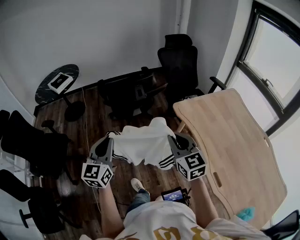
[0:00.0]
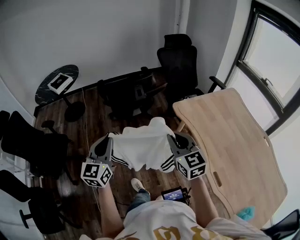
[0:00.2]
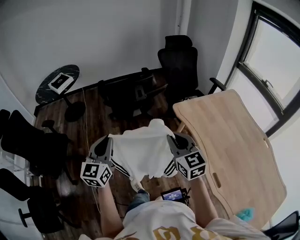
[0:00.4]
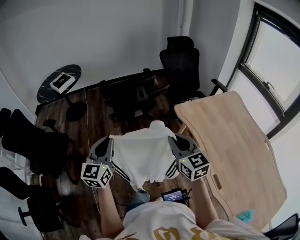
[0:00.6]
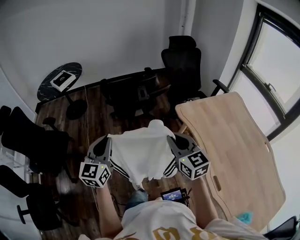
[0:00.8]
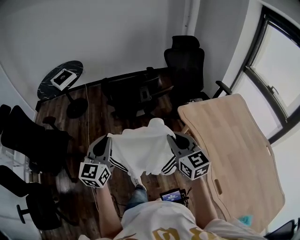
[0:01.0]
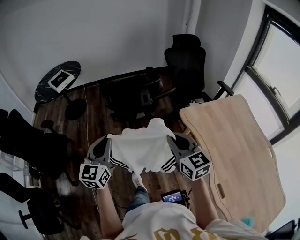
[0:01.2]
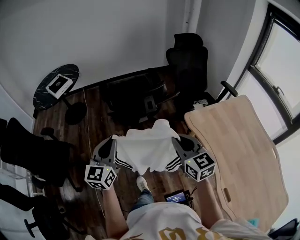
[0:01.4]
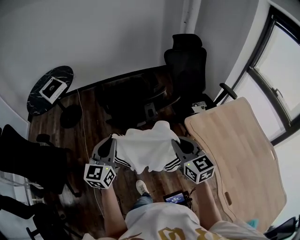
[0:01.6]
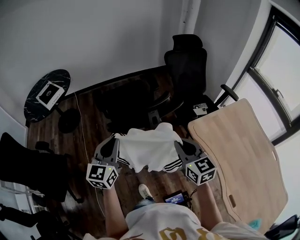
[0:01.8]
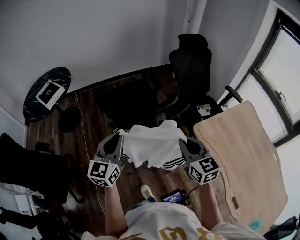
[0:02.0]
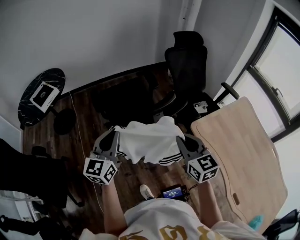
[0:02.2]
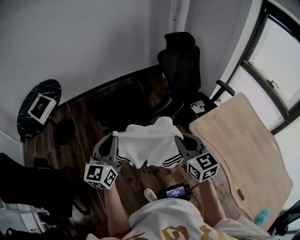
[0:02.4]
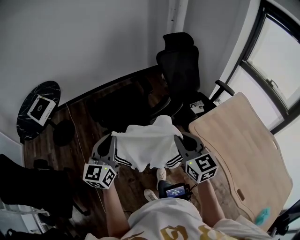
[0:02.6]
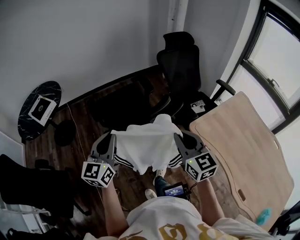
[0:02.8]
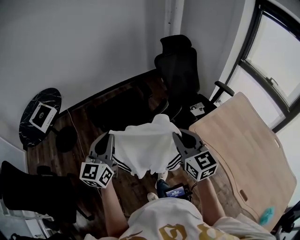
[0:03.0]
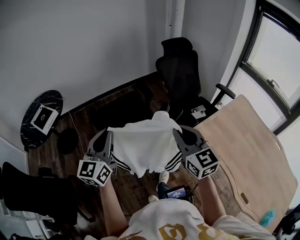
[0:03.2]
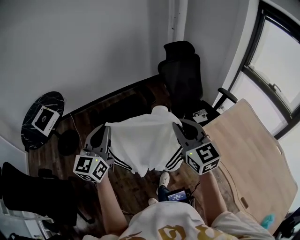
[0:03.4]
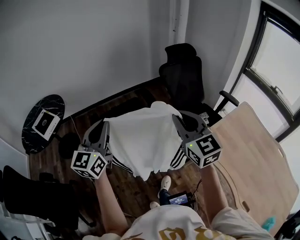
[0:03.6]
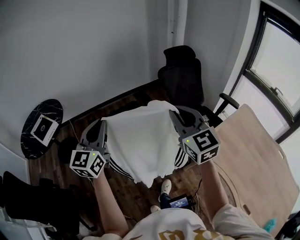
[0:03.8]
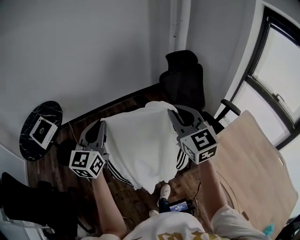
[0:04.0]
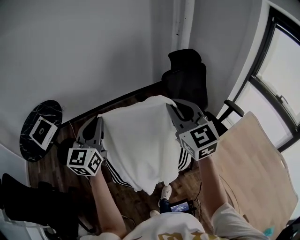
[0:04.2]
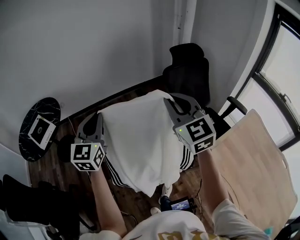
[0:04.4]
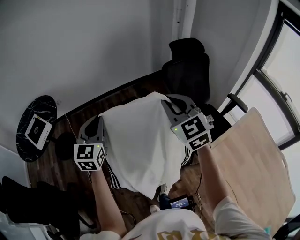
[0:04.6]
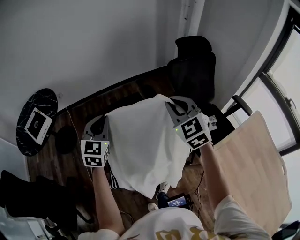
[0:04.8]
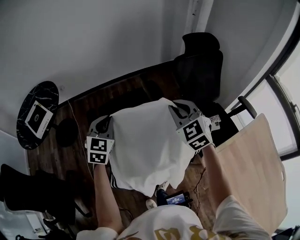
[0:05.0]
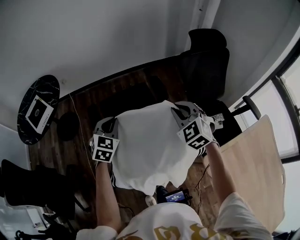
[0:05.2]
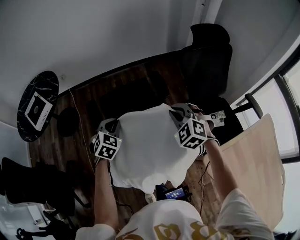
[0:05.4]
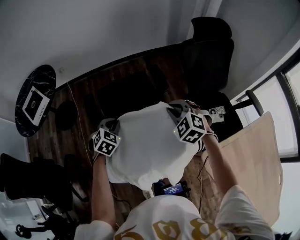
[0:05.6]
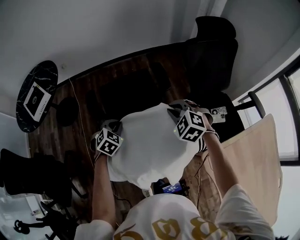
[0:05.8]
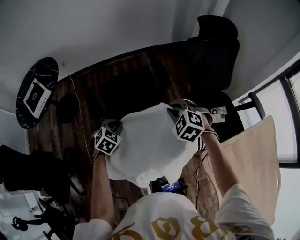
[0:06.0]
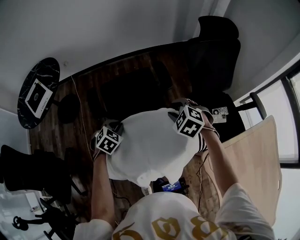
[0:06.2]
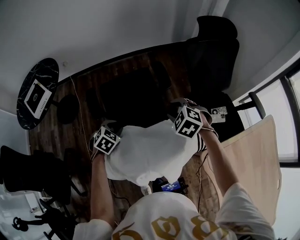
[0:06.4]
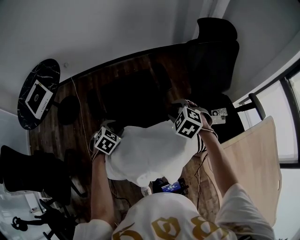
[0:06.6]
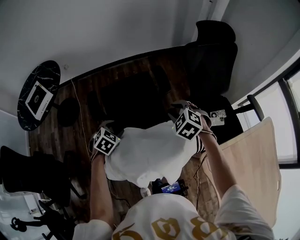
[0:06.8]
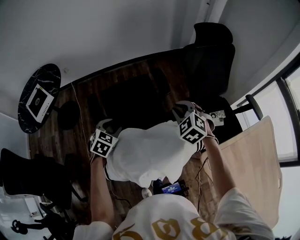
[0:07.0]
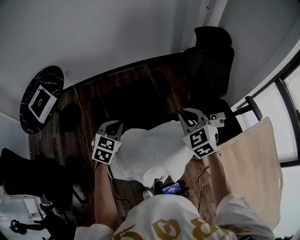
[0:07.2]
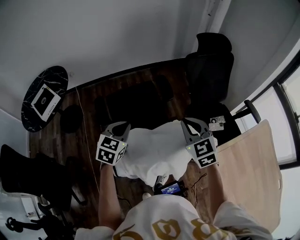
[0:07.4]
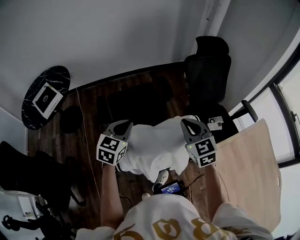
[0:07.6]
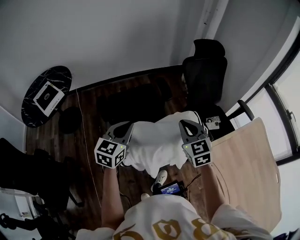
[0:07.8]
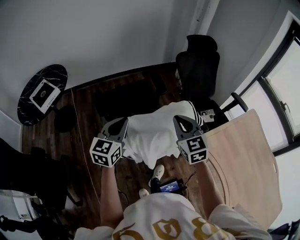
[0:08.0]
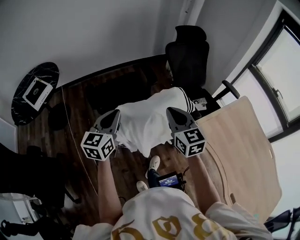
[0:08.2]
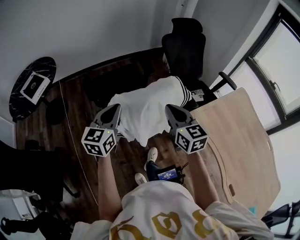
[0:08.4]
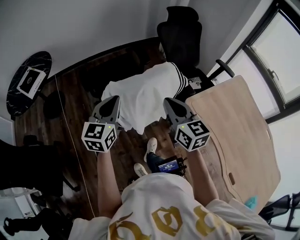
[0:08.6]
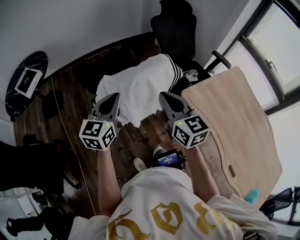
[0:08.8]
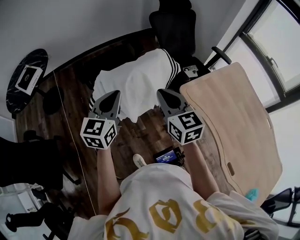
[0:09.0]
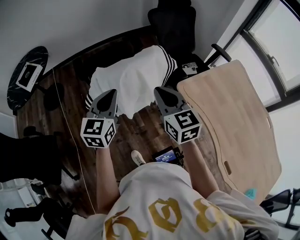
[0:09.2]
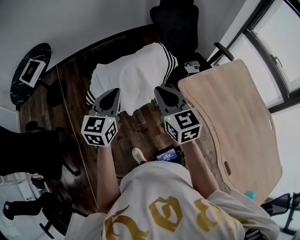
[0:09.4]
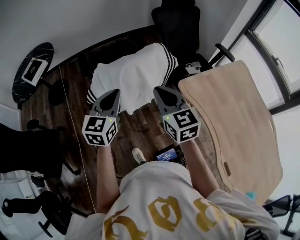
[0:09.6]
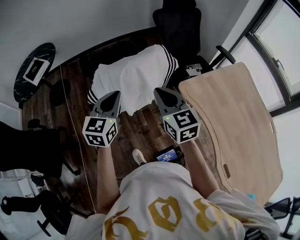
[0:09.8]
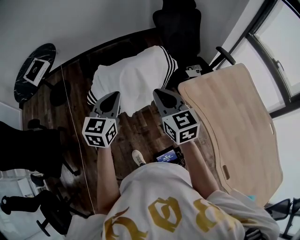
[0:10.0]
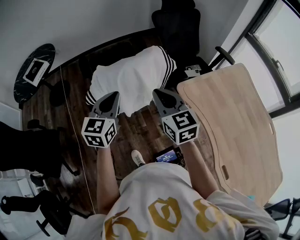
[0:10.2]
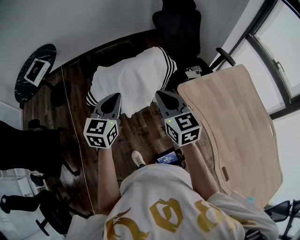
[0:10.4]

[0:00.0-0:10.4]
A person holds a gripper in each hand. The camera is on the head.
0:00.0 to 0:01.4: Both grippers move forward, roughly 15 cm.
0:01.4 to 0:03.0: The two grippers go approximately 20 cm forward.
0:03.0 to 0:04.4: The left gripper moves forward, about 25 cm, while the right gripper shifts approximately 30 cm forward and upward.
0:04.4 to 0:06.0: Both grippers travel together downward, about 30 cm. The right gripper tips its fingers downward by some 50 degrees, while the left gripper tilts its fingers approximately 50 degrees downward.
0:06.0 to 0:07.4: The right gripper is displaced upward and backward by about 15 cm, rotates roughly 40 degrees, and opens, then closes once more; the left gripper shifts some 15 cm upward, rotates about 30 degrees, and opens, then closes again.
0:07.4 to 0:09.0: Both grippers move backward, some 25 cm. The left gripper changes its angle by roughly 20 degrees; the right gripper changes its angle by approximately 30 degrees.
0:09.0 to 0:10.4: The right gripper ends up approximately 5 cm from where it was. The left gripper shifts by roughly 5 cm.

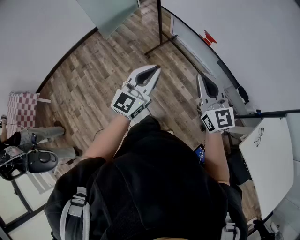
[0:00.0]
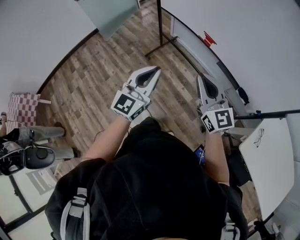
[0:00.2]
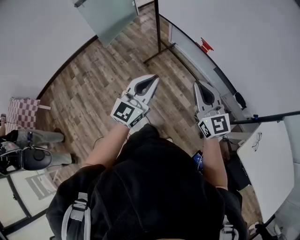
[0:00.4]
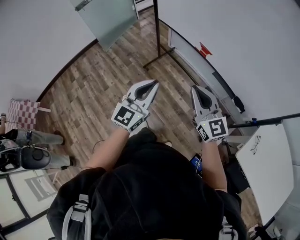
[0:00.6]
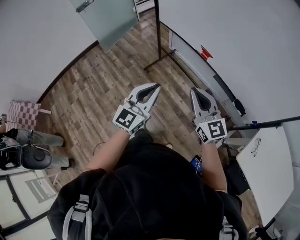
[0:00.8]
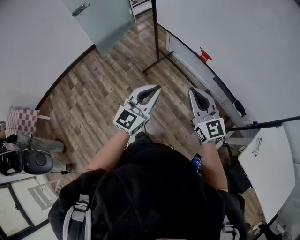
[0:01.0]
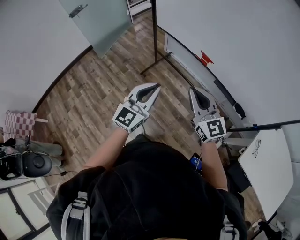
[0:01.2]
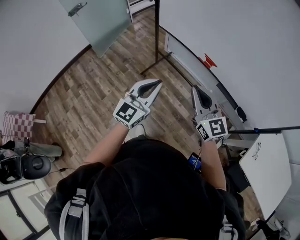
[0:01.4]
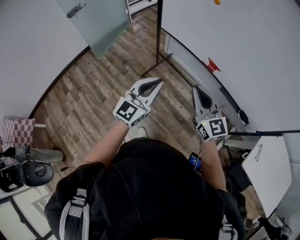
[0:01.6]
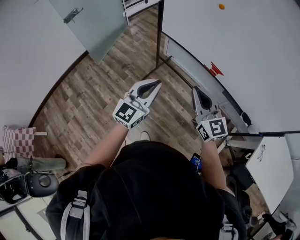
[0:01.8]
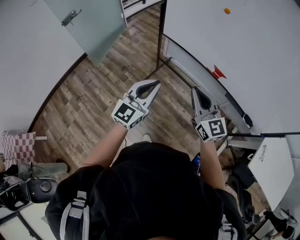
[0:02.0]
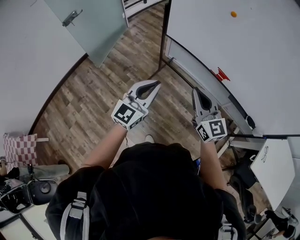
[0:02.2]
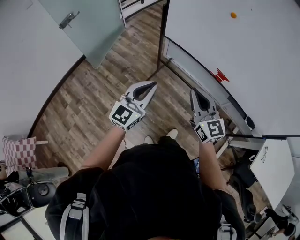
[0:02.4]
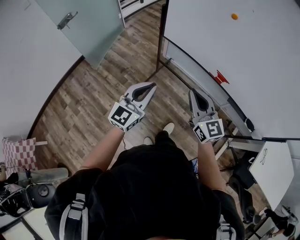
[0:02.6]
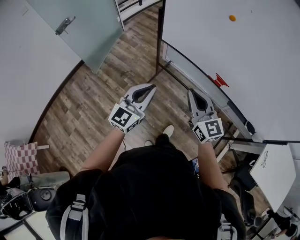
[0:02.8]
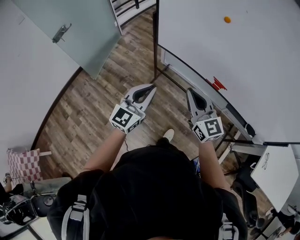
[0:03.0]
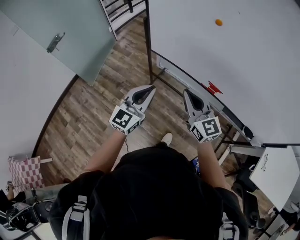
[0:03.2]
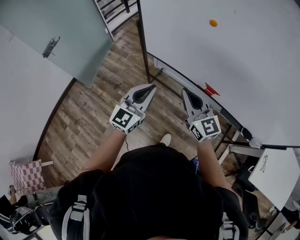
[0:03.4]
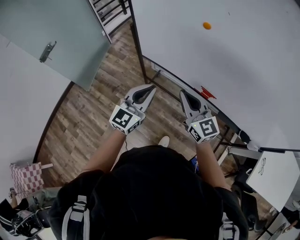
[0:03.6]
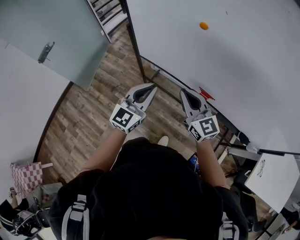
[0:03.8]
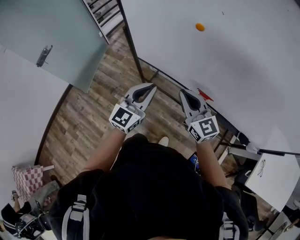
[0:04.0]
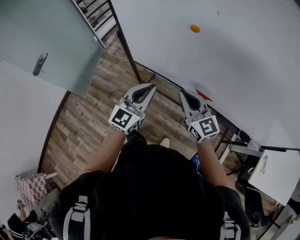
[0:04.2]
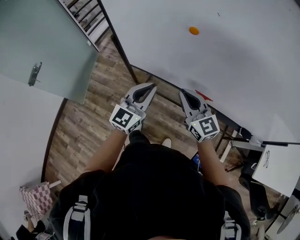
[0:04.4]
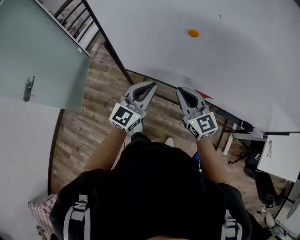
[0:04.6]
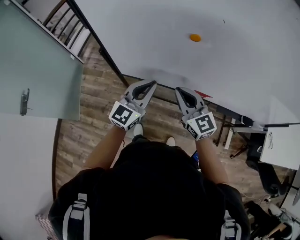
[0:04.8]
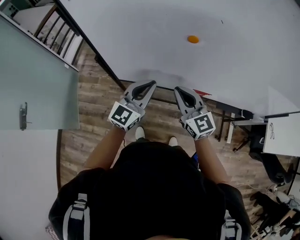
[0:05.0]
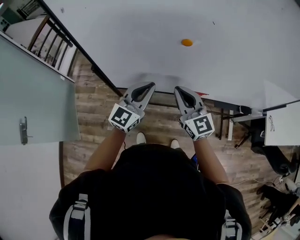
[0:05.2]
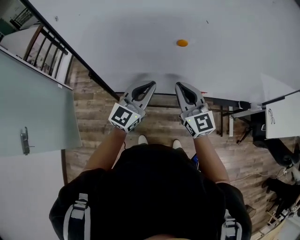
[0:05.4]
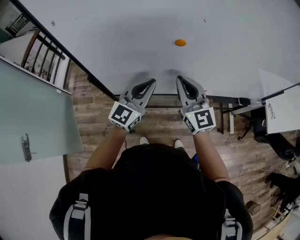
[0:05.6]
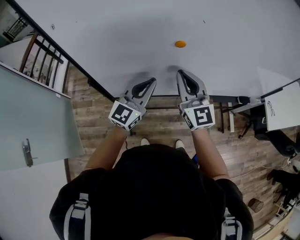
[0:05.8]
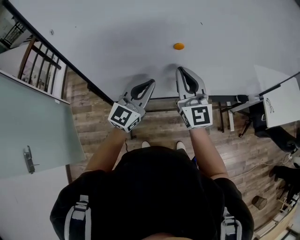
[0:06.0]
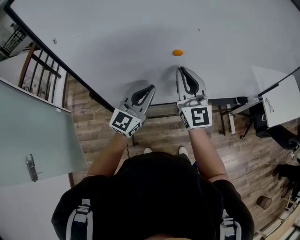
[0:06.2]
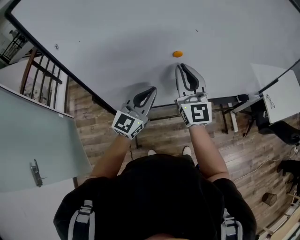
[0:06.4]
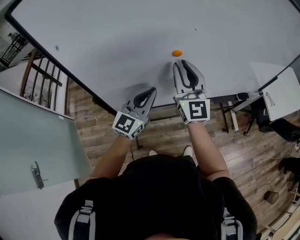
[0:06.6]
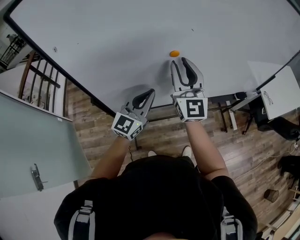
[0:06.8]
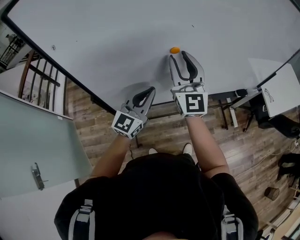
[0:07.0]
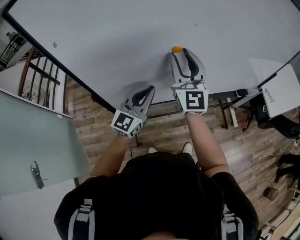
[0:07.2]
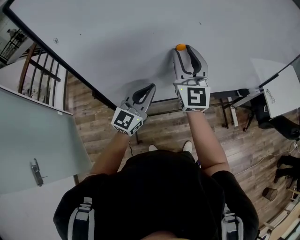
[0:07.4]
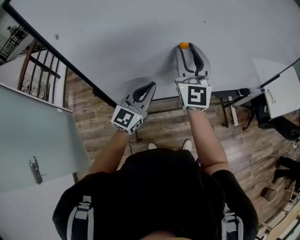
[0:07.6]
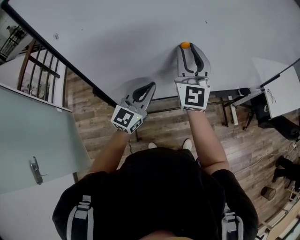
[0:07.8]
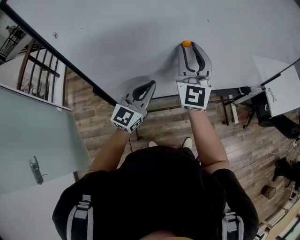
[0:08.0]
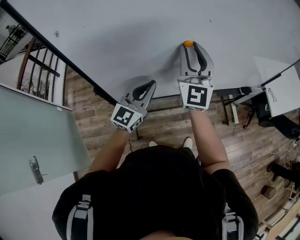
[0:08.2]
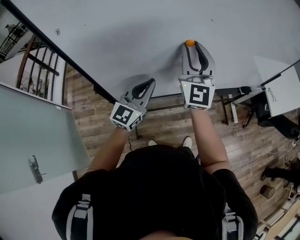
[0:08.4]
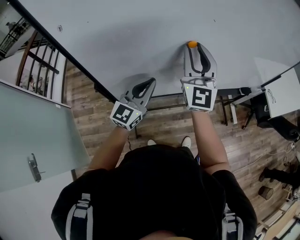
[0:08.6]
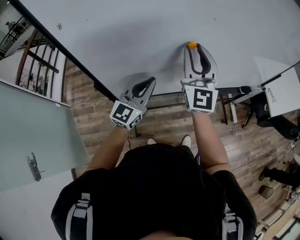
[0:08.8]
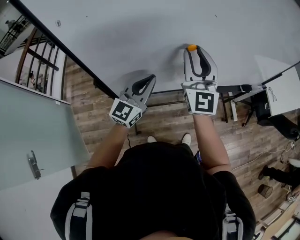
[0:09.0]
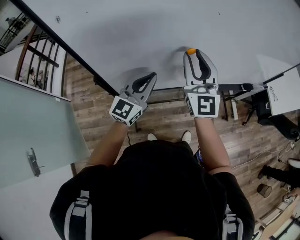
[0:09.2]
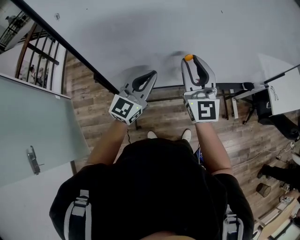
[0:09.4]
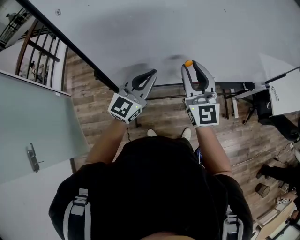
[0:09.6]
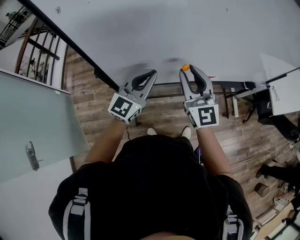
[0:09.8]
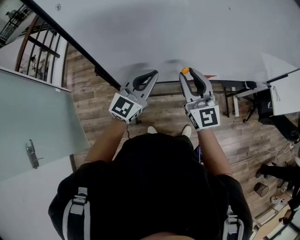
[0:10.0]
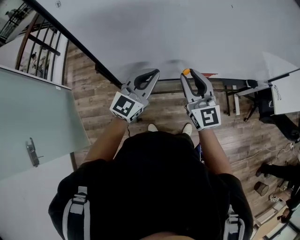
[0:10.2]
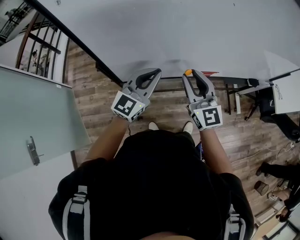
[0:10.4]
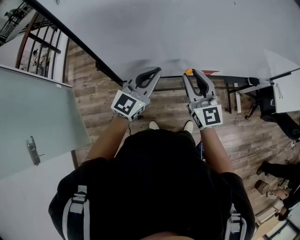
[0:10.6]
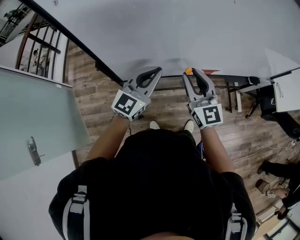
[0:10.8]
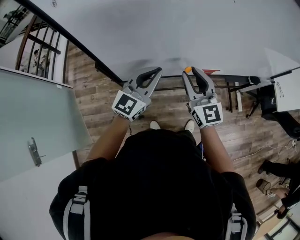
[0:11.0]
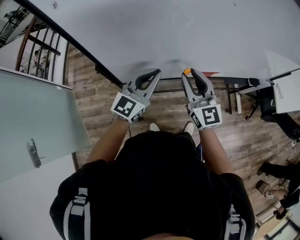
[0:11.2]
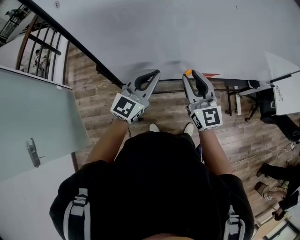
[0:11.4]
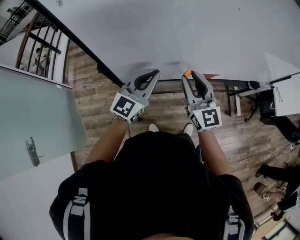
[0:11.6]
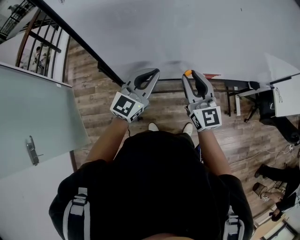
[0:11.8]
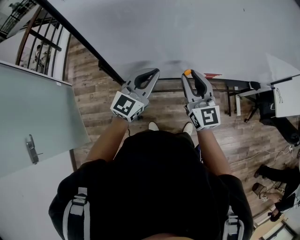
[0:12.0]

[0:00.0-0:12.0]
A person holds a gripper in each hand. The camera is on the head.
0:00.0 to 0:01.6: The two grippers go about 20 cm forward and to the left.
0:01.6 to 0:03.0: The two grippers go approximately 20 cm forward and to the left.
0:03.0 to 0:04.4: Both grippers travel together forward and to the right, roughly 20 cm.
0:04.4 to 0:06.0: The left gripper moves some 10 cm, and rotates roughly 30 degrees; the right gripper travels upward by about 10 cm, and rotates approximately 50 degrees.
0:06.0 to 0:07.6: The right gripper shifts approximately 5 cm upward, and opens.
0:07.6 to 0:09.0: The grippers make only small movements.
0:09.0 to 0:10.4: The right gripper goes some 15 cm downward and backward, and changes its angle by about 30 degrees.
0:10.4 to 0:12.0: The grippers move only a little.

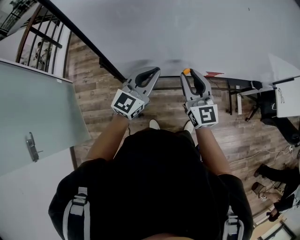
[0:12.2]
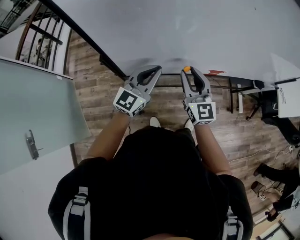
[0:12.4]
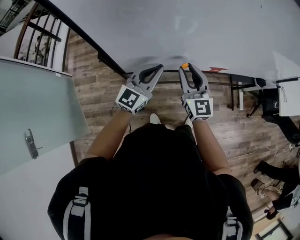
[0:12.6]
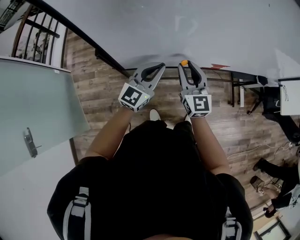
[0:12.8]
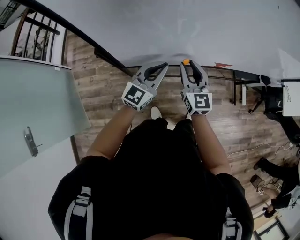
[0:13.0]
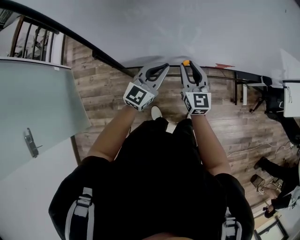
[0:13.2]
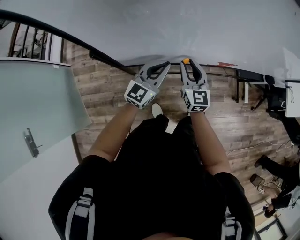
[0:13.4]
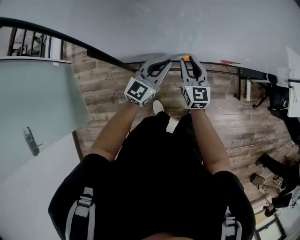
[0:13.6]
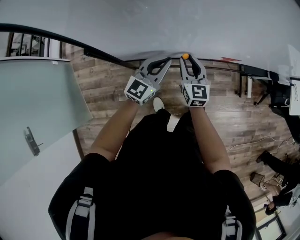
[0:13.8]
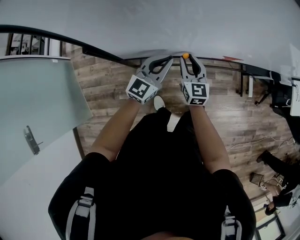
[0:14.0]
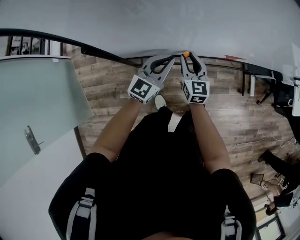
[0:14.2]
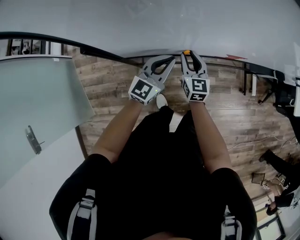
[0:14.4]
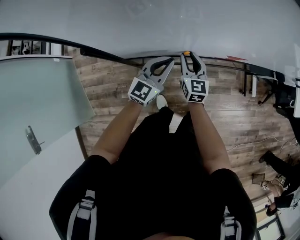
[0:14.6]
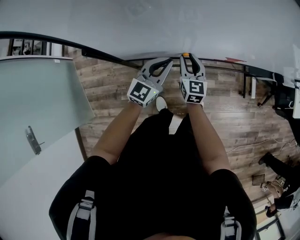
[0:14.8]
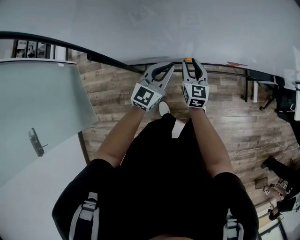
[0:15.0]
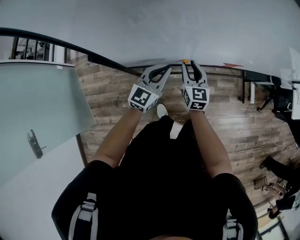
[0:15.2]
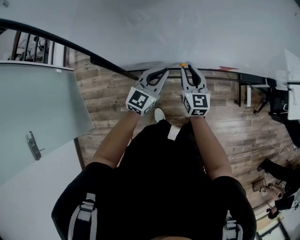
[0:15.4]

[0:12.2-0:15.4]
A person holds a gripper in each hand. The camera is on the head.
0:12.2 to 0:13.8: The two grippers go roughly 20 cm downward.
0:13.8 to 0:15.4: The grippers move only a little.
